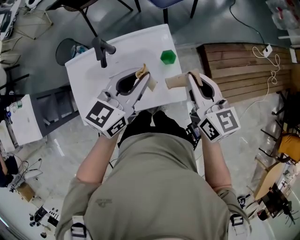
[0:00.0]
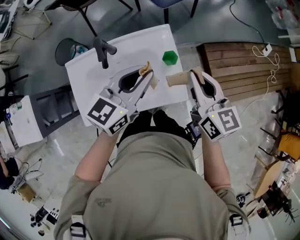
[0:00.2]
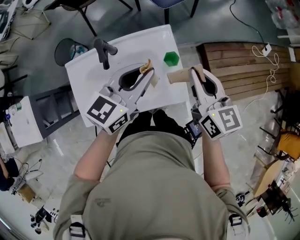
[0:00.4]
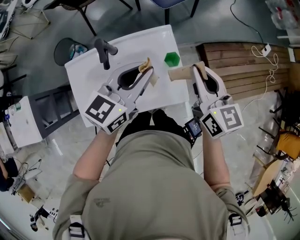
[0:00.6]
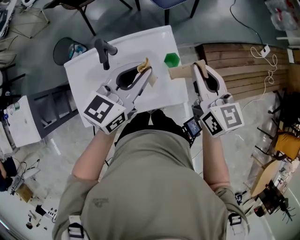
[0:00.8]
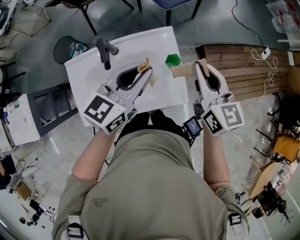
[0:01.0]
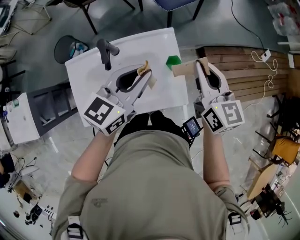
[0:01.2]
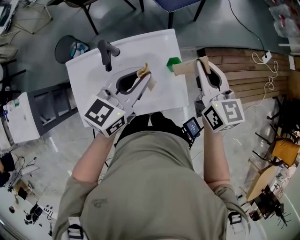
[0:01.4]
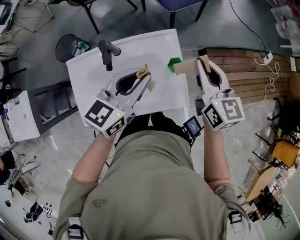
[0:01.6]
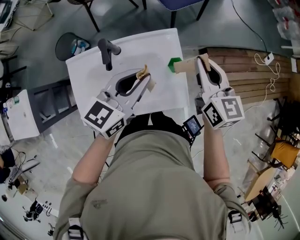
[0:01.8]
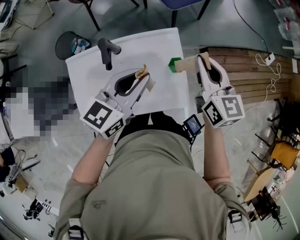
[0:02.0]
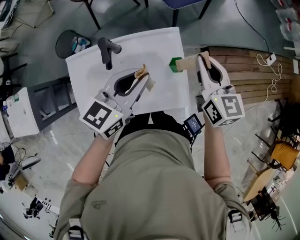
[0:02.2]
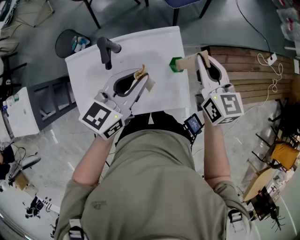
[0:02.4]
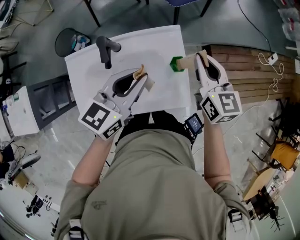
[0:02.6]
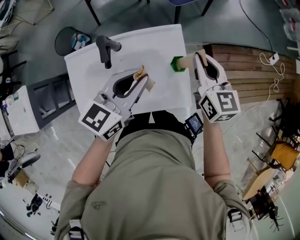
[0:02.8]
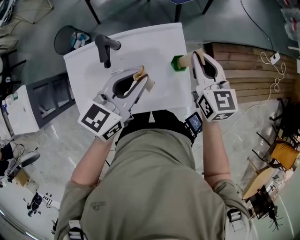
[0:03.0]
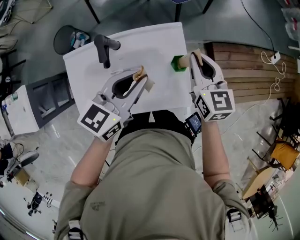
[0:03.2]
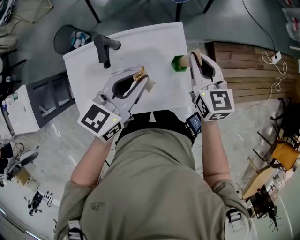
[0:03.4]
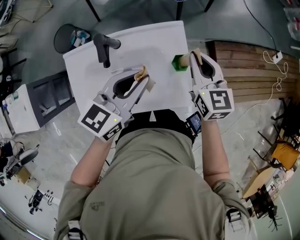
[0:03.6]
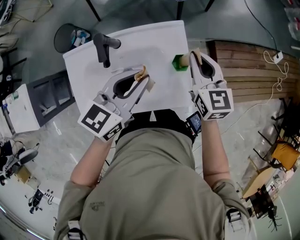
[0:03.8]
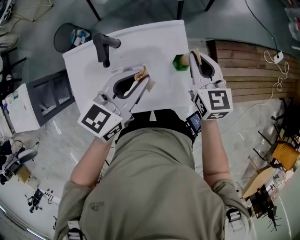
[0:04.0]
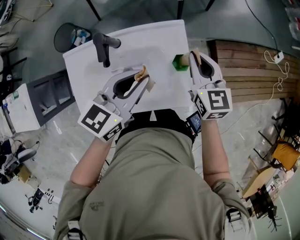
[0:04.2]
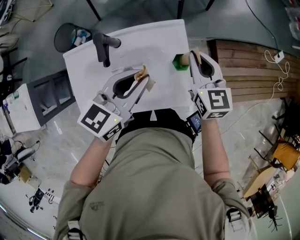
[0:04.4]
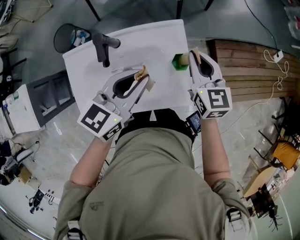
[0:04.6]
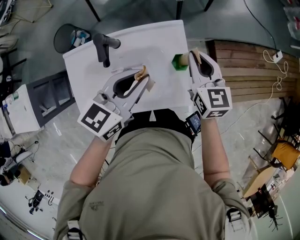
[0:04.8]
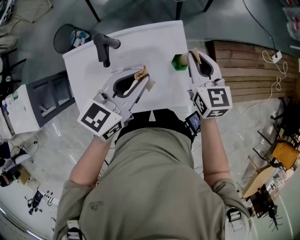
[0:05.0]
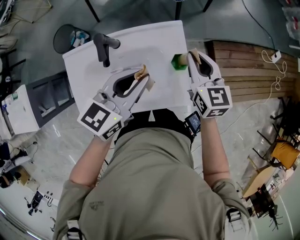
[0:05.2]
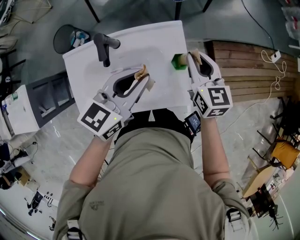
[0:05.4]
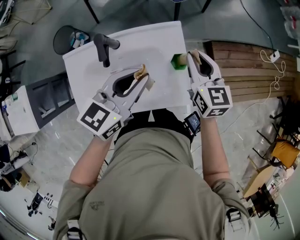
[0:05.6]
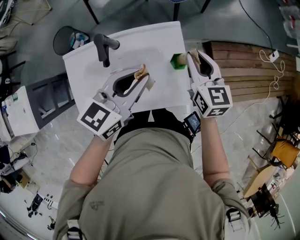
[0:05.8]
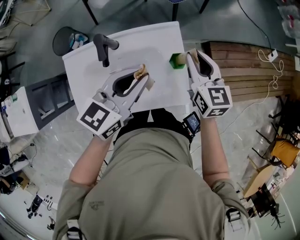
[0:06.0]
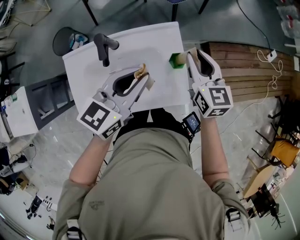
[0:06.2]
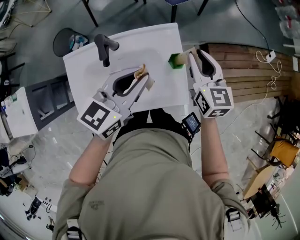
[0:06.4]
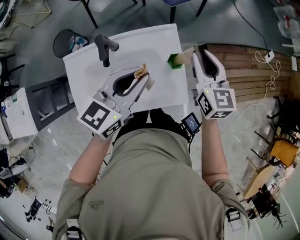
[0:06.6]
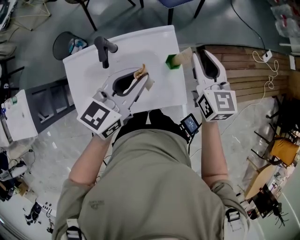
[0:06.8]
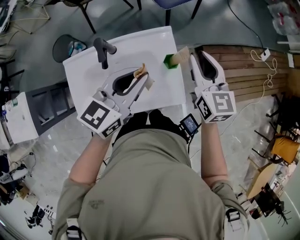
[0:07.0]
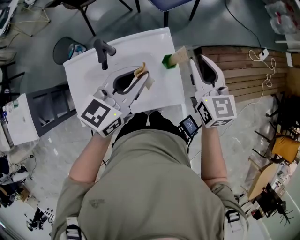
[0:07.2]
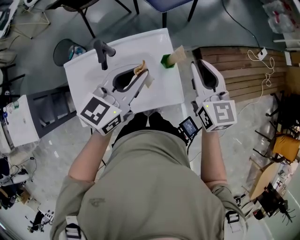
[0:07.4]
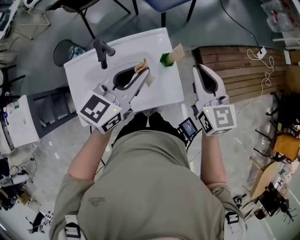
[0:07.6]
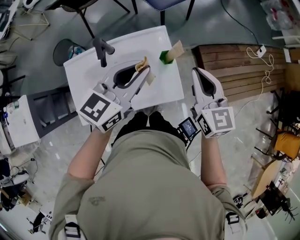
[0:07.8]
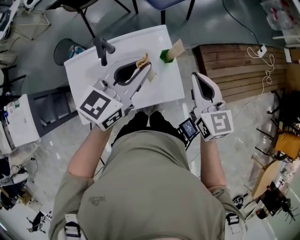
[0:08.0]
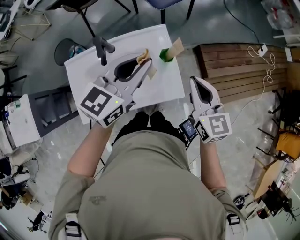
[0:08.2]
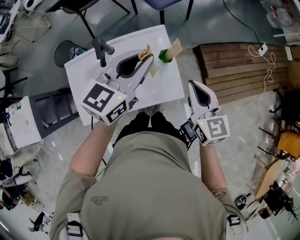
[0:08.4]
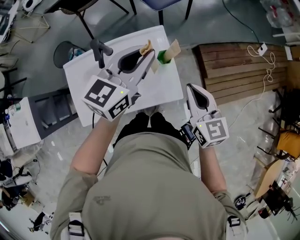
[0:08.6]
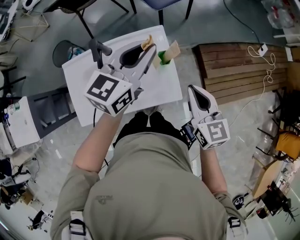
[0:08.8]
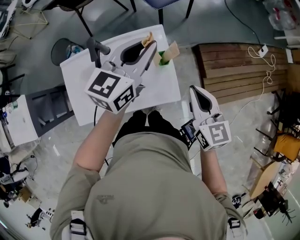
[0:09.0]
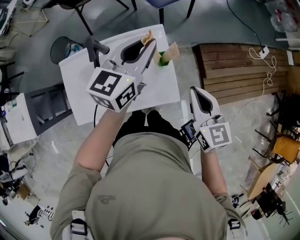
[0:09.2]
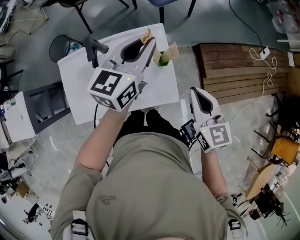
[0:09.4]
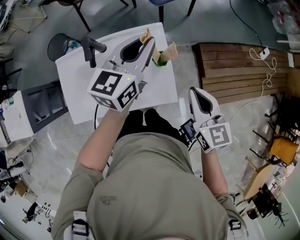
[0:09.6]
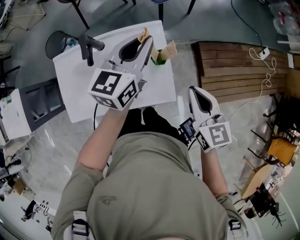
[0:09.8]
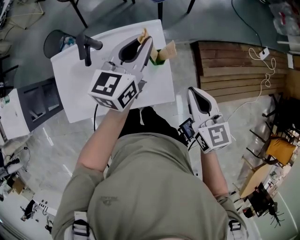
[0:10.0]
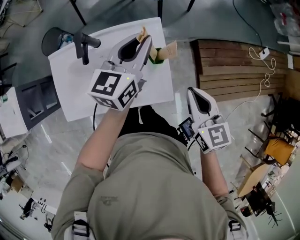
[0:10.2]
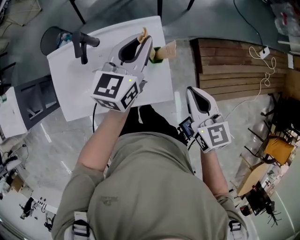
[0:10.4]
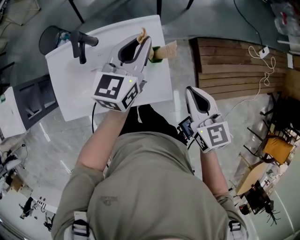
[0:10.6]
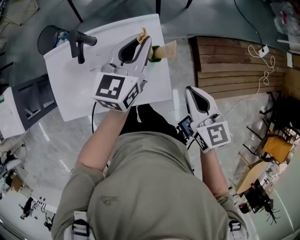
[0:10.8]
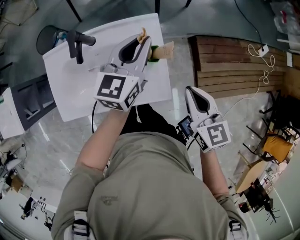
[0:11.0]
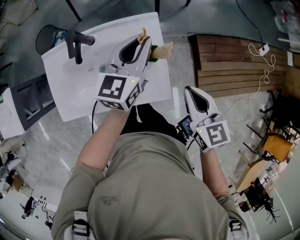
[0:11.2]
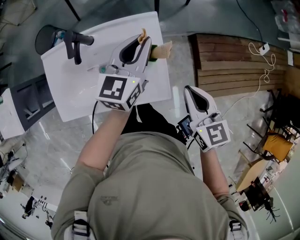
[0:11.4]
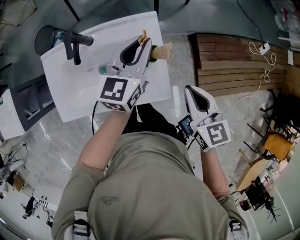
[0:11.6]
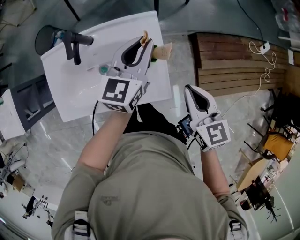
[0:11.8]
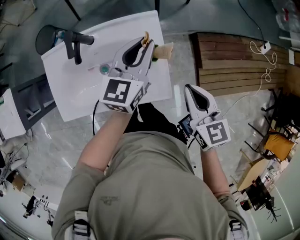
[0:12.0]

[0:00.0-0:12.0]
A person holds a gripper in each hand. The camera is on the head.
0:00.0 to 0:01.6: The right gripper shifts some 10 cm forward.
0:01.6 to 0:03.0: The right gripper is displaced downward by some 5 cm.
0:03.0 to 0:06.0: There are only small adjustments of the grippers.
0:06.0 to 0:07.6: The right gripper goes roughly 10 cm upward and backward. Meanwhile the left gripper heads upward, covering roughly 5 cm.
0:07.6 to 0:09.0: The left gripper travels forward by approximately 10 cm. Meanwhile the right gripper heads backward, covering about 5 cm.
0:09.0 to 0:10.4: The left gripper travels downward by some 5 cm.
0:10.4 to 0:12.0: The grippers stay close to where they were, moving slightly.

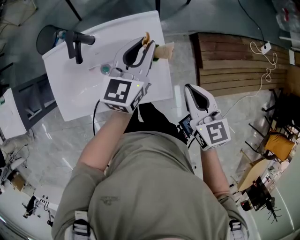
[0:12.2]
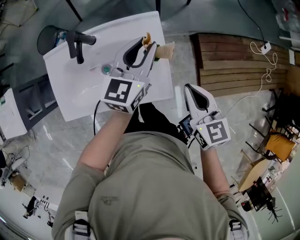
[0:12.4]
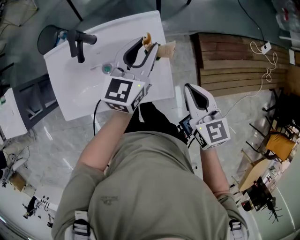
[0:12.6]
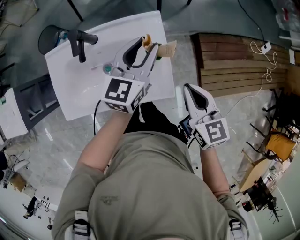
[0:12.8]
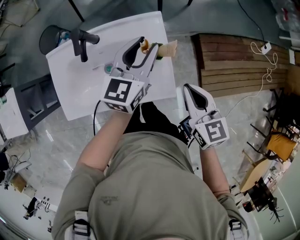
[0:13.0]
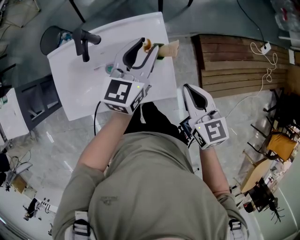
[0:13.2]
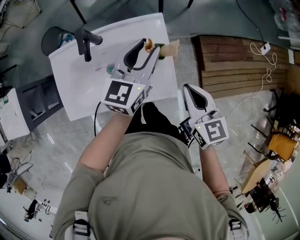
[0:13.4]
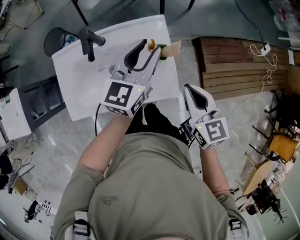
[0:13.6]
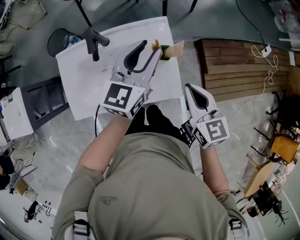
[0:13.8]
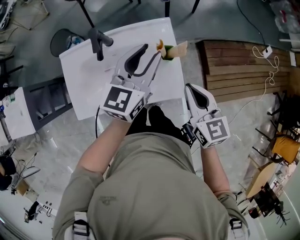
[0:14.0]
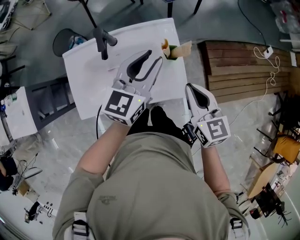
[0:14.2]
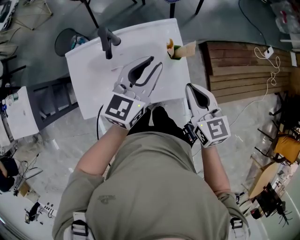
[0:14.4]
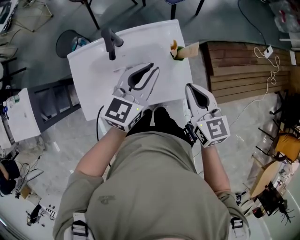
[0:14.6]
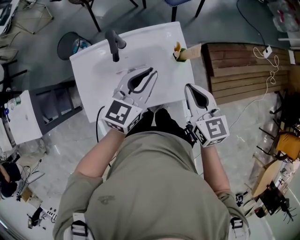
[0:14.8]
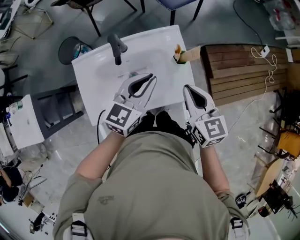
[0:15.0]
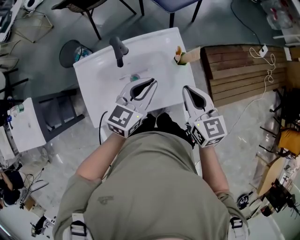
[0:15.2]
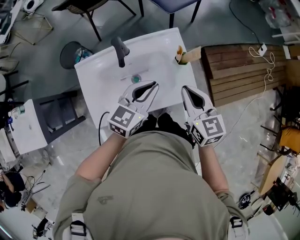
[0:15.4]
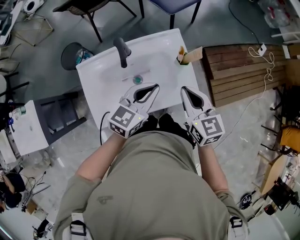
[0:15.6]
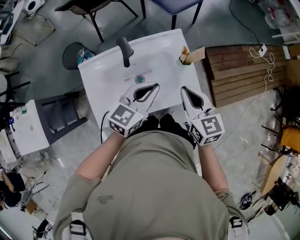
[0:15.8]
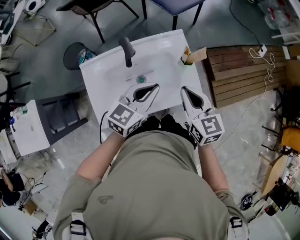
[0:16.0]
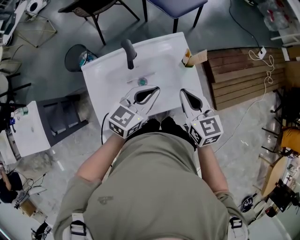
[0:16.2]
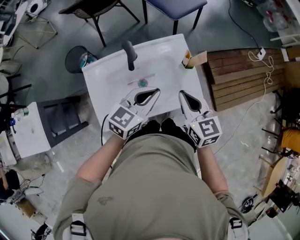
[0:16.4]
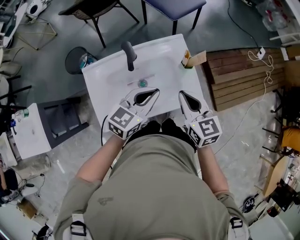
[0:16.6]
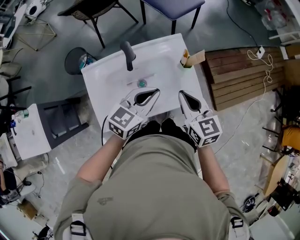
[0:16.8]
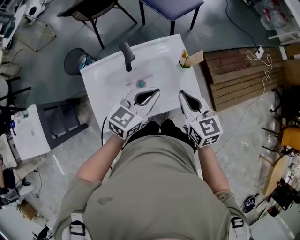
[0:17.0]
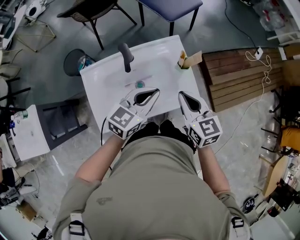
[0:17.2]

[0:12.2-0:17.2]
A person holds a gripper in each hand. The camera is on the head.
0:12.2 to 0:13.8: The left gripper is displaced upward by about 5 cm.
0:13.8 to 0:15.6: The right gripper goes roughly 10 cm to the left; the left gripper moves backward and to the left, approximately 15 cm, changes its angle by some 20 degrees, and closes.
0:15.6 to 0:17.2: The grippers make only small movements.

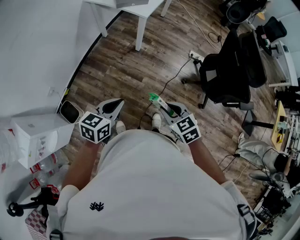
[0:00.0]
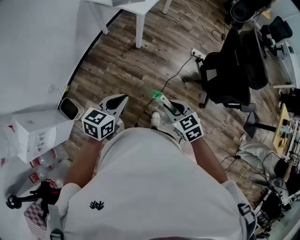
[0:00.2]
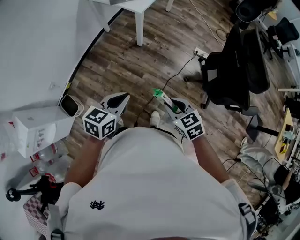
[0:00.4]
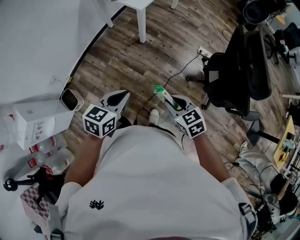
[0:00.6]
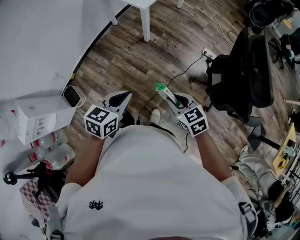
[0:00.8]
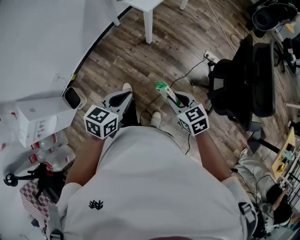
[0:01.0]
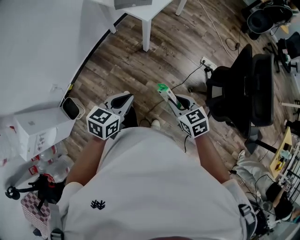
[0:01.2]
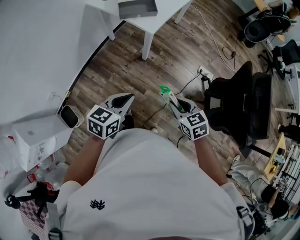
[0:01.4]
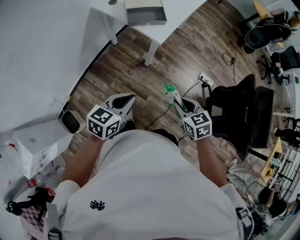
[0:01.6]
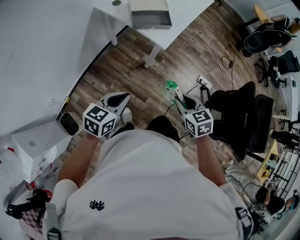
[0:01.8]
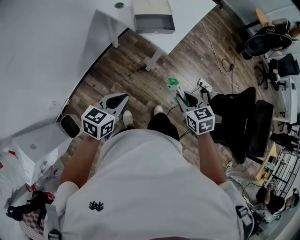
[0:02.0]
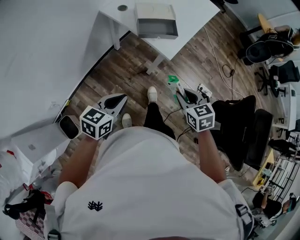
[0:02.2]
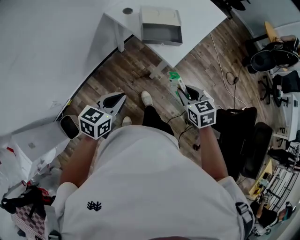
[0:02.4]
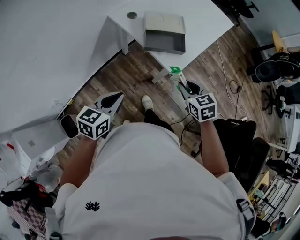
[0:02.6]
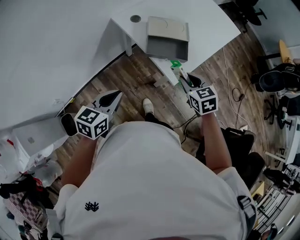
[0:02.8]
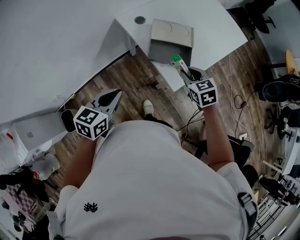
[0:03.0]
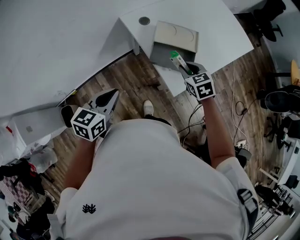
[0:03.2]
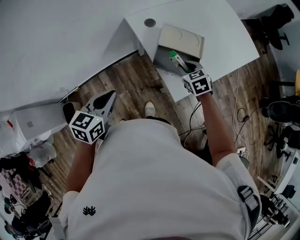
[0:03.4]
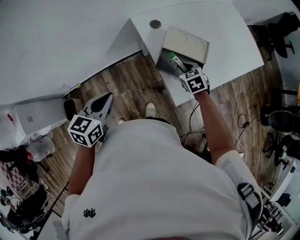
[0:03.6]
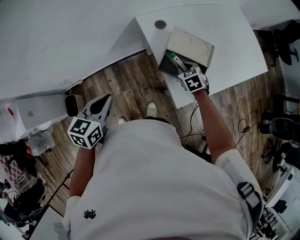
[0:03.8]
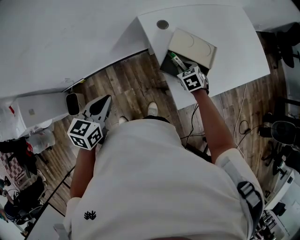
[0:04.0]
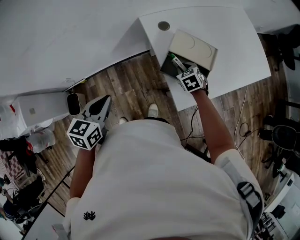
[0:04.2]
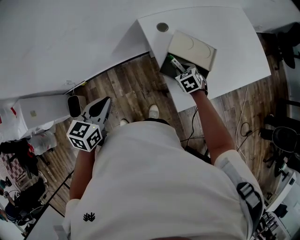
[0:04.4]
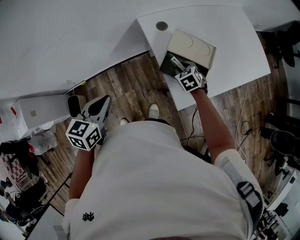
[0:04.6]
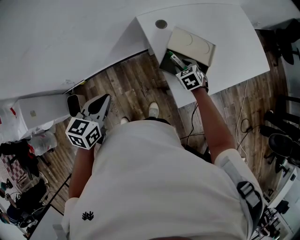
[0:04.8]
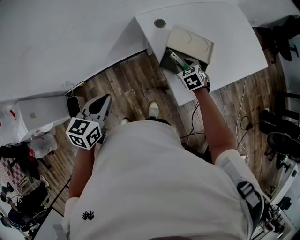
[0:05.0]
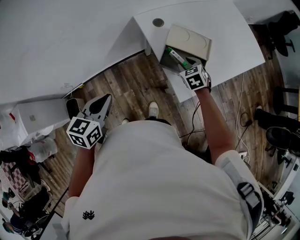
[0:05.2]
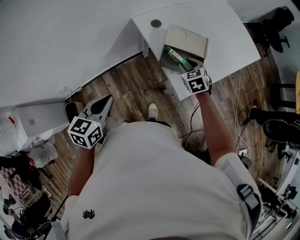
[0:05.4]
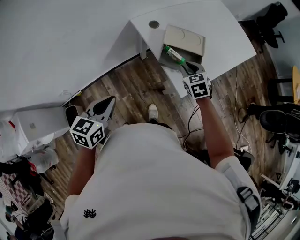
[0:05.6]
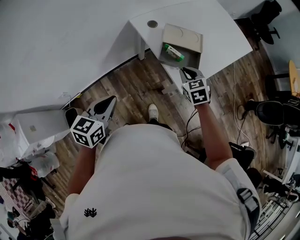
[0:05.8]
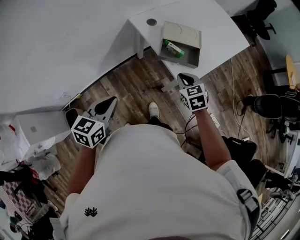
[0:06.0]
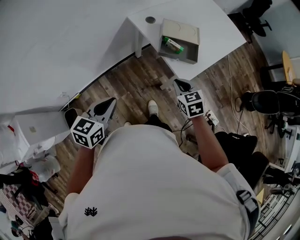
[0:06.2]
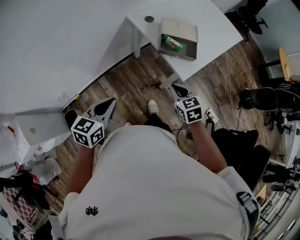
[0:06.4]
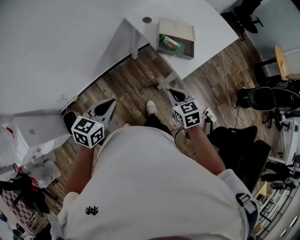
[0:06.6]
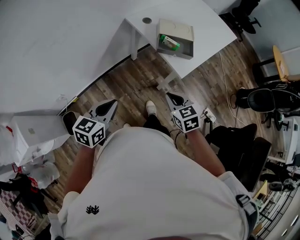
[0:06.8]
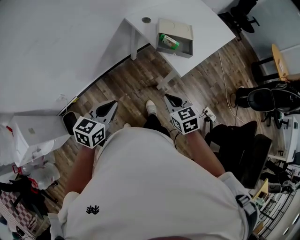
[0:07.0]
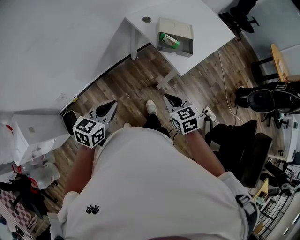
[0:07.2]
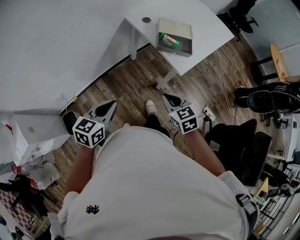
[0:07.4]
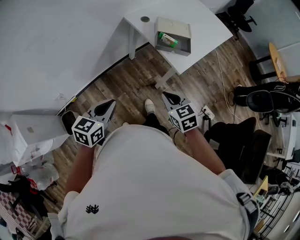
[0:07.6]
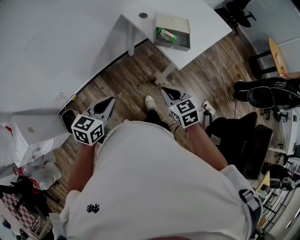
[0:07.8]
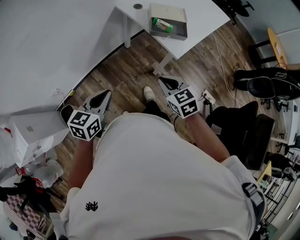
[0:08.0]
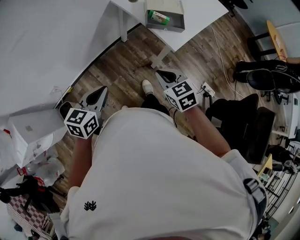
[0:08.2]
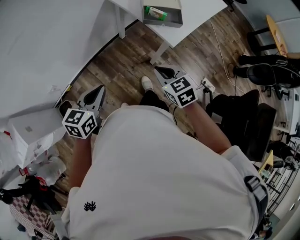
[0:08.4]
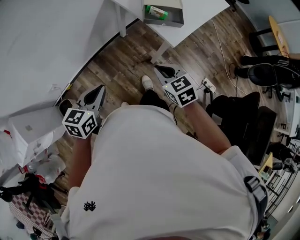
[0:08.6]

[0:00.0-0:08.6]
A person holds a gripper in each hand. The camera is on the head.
0:00.0 to 0:01.4: Both grippers travel together forward and to the right, approximately 20 cm.
0:01.4 to 0:02.8: The left gripper goes roughly 25 cm forward and to the left, while the right gripper moves forward, some 40 cm.
0:02.8 to 0:04.4: The right gripper heads forward and downward, covering some 25 cm, and changes its angle by roughly 30 degrees, while the left gripper changes place by some 5 cm, and swivels about 30 degrees.
0:04.4 to 0:05.8: The left gripper moves some 5 cm, while the right gripper travels backward and upward by about 15 cm, and turns by roughly 20 degrees.
0:05.8 to 0:07.2: The left gripper heads backward, covering approximately 10 cm; the right gripper goes about 25 cm backward.
0:07.2 to 0:08.6: The grippers move only a little.
